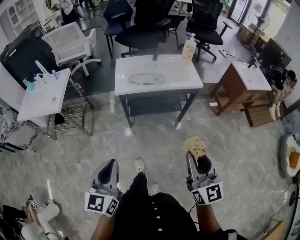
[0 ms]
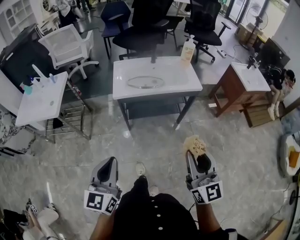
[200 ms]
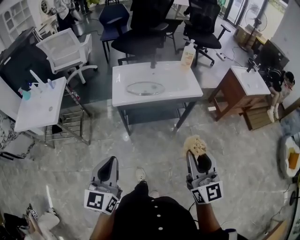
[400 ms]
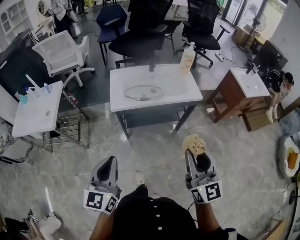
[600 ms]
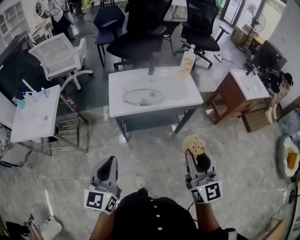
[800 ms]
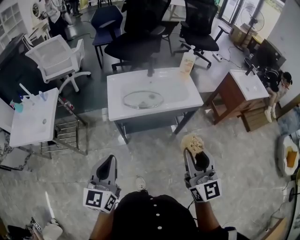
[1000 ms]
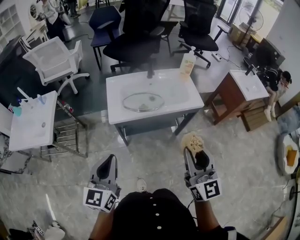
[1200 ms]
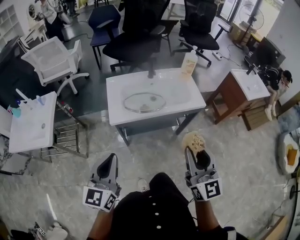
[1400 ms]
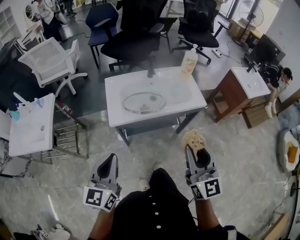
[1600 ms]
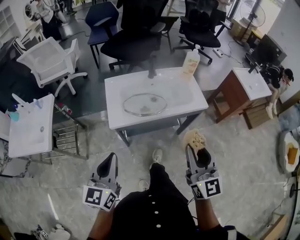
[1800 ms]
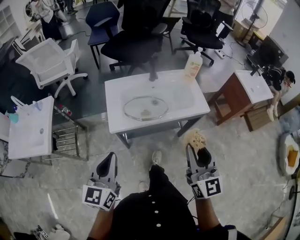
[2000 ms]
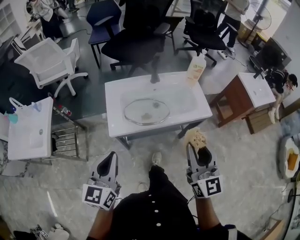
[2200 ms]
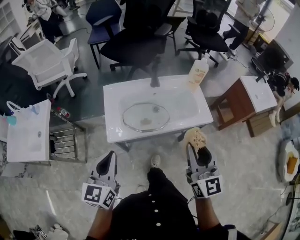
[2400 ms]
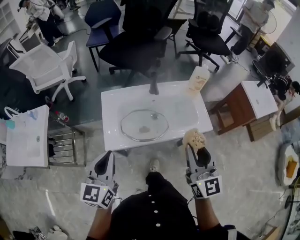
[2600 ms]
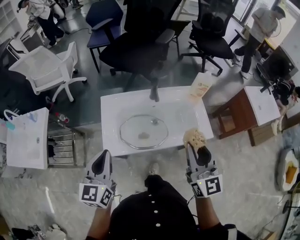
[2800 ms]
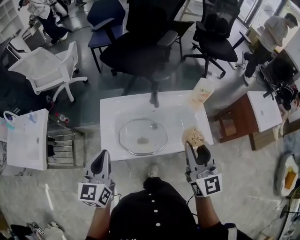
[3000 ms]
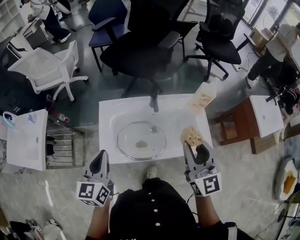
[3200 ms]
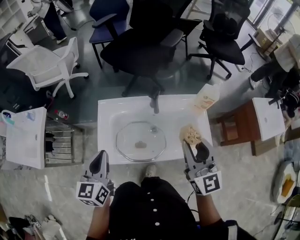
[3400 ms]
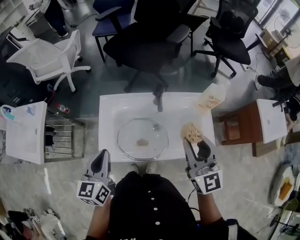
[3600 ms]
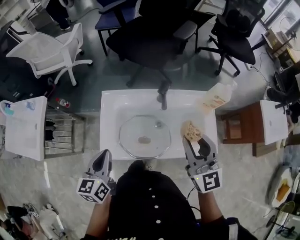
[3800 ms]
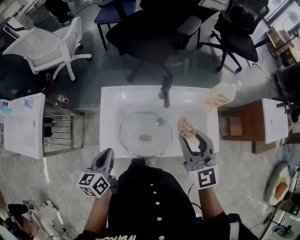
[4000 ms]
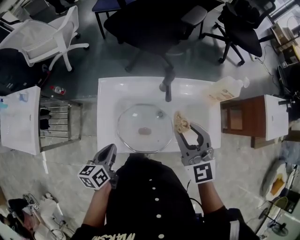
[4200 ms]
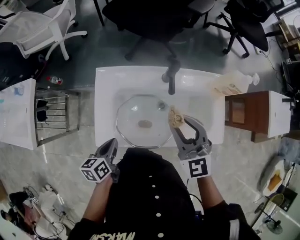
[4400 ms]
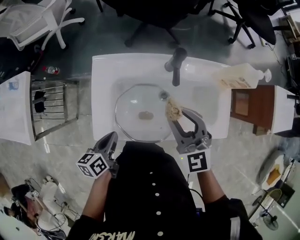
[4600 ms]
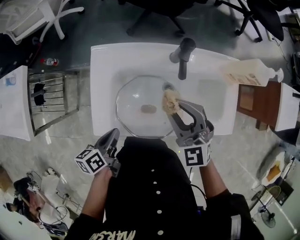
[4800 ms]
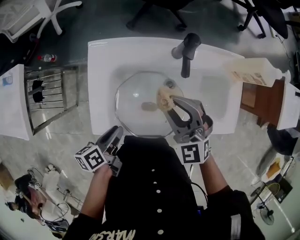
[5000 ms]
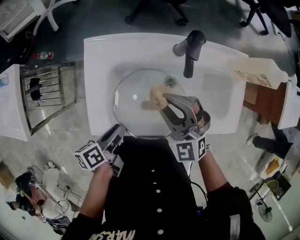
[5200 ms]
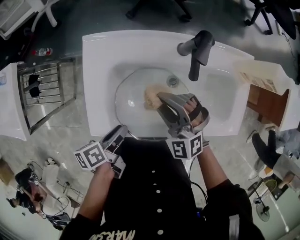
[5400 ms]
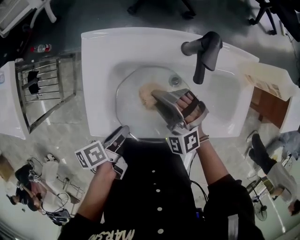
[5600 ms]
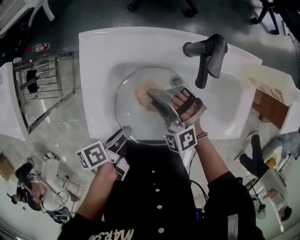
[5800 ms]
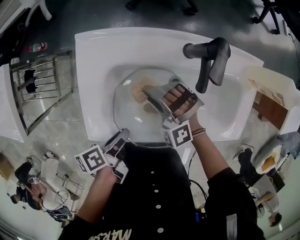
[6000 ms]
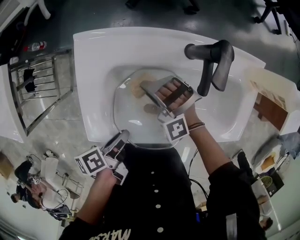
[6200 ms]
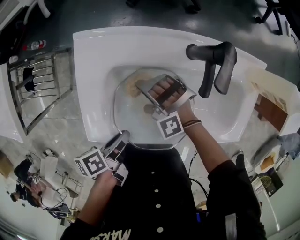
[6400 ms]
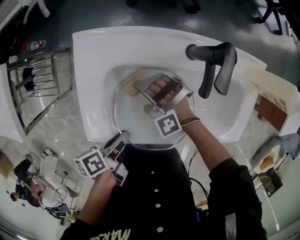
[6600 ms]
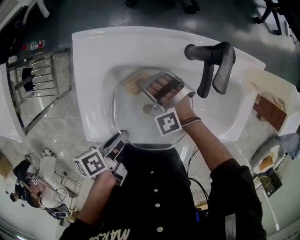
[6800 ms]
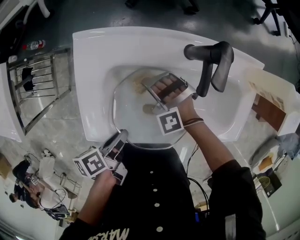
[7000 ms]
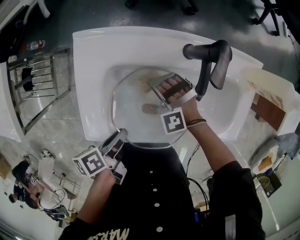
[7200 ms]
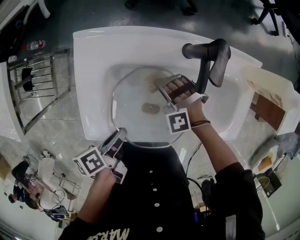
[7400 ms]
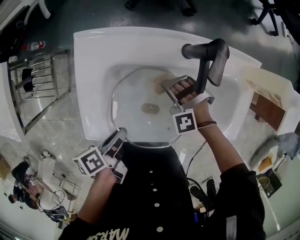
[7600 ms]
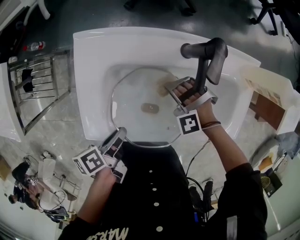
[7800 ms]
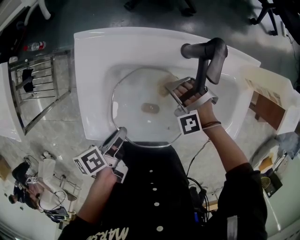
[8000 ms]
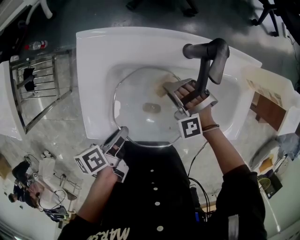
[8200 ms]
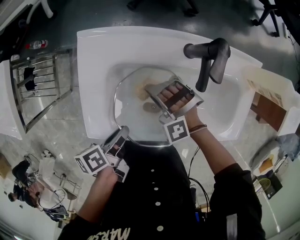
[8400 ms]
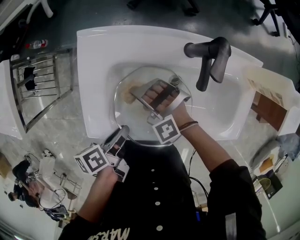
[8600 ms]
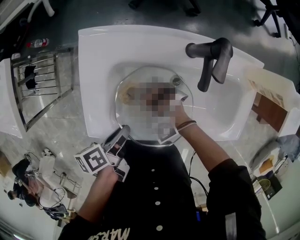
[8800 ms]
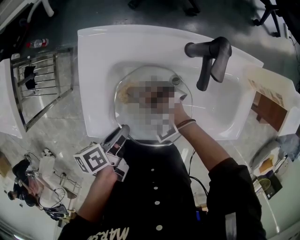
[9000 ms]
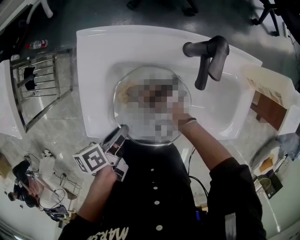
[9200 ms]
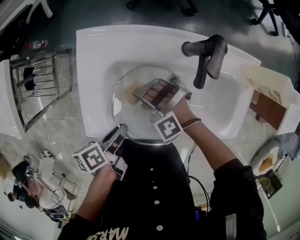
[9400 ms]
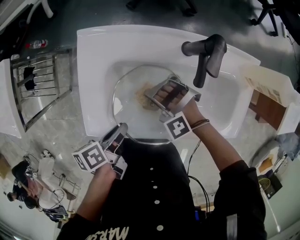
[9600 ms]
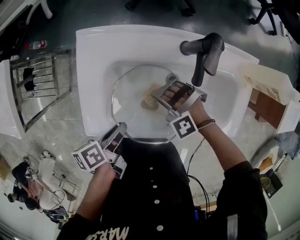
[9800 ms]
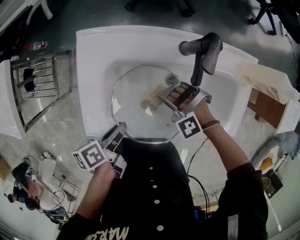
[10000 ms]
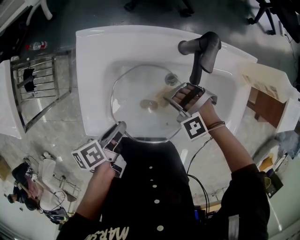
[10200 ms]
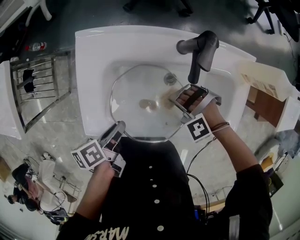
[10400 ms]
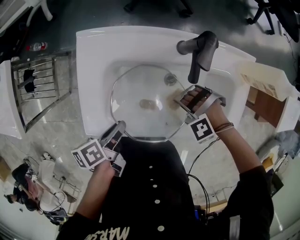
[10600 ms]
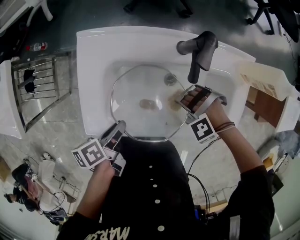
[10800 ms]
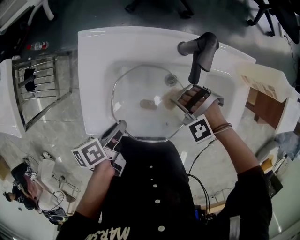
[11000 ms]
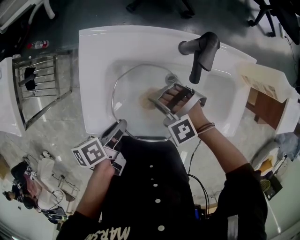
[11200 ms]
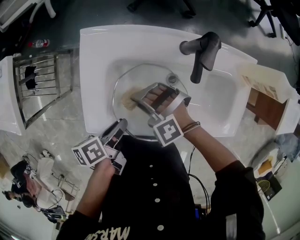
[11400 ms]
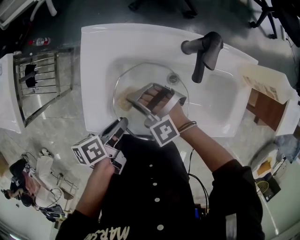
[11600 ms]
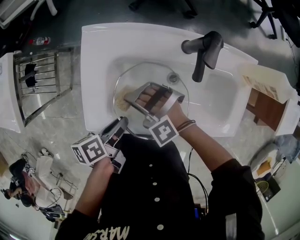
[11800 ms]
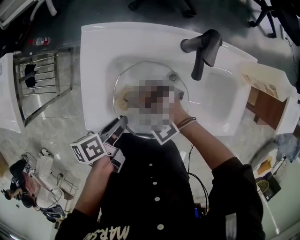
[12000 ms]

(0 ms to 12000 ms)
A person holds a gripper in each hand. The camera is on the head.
0 ms - 1600 ms: The grippers both shift forward by about 25 cm.
1600 ms - 3000 ms: Both grippers travel together forward, some 30 cm.
3000 ms - 4400 ms: The right gripper travels forward, downward and to the left by some 20 cm, and turns by some 30 degrees. The left gripper moves downward, roughly 20 cm, and changes its angle by some 40 degrees.
4400 ms - 6000 ms: The left gripper heads downward, covering some 10 cm, turns by about 40 degrees, and opens up, while the right gripper travels downward and to the left by some 25 cm, and rolls counterclockwise, seen from behind, by approximately 50 degrees.
6000 ms - 7600 ms: The right gripper heads downward and to the right, covering some 10 cm, and changes its angle by roughly 30 degrees.
7600 ms - 9000 ms: The right gripper heads to the left, covering about 15 cm, and changes its angle by about 20 degrees.
9000 ms - 10400 ms: The right gripper shifts roughly 15 cm to the right and backward, and rotates roughly 30 degrees.
10400 ms - 12000 ms: The right gripper shifts by some 15 cm, and turns by some 20 degrees.

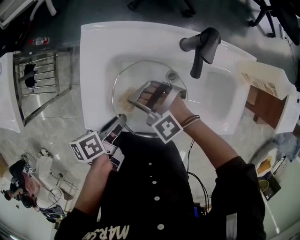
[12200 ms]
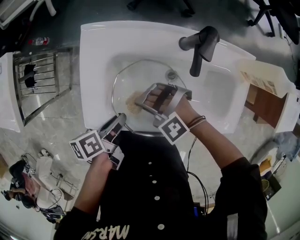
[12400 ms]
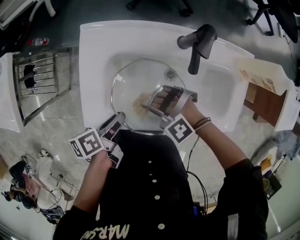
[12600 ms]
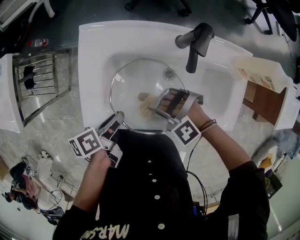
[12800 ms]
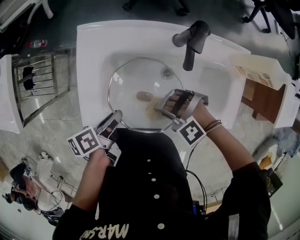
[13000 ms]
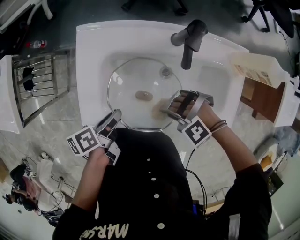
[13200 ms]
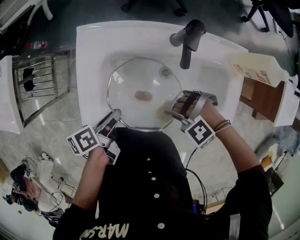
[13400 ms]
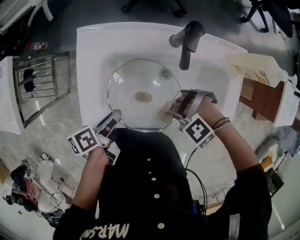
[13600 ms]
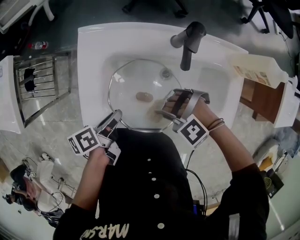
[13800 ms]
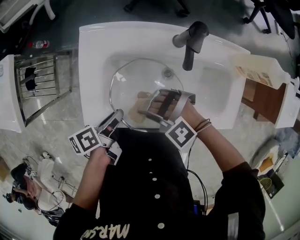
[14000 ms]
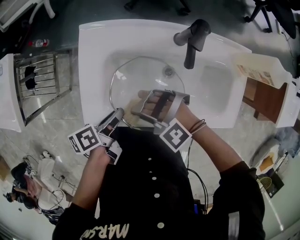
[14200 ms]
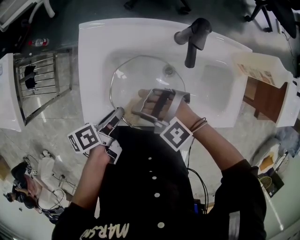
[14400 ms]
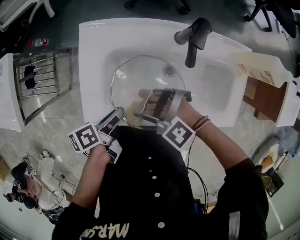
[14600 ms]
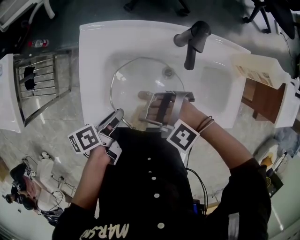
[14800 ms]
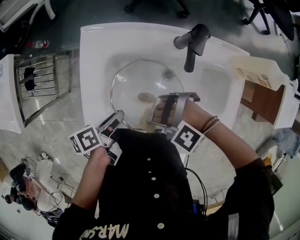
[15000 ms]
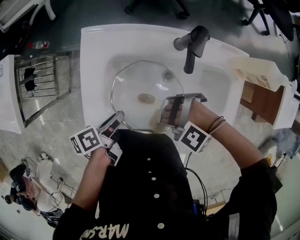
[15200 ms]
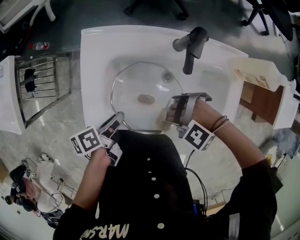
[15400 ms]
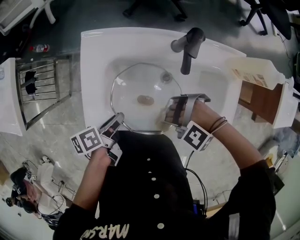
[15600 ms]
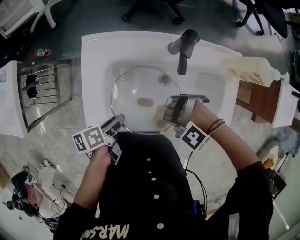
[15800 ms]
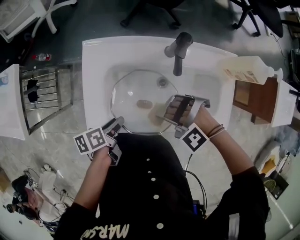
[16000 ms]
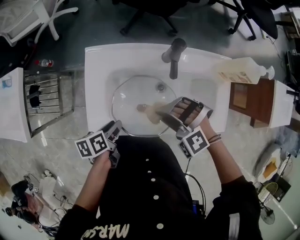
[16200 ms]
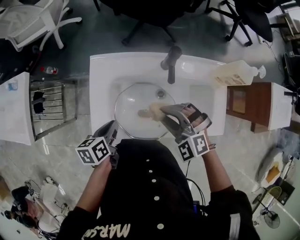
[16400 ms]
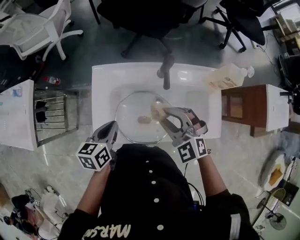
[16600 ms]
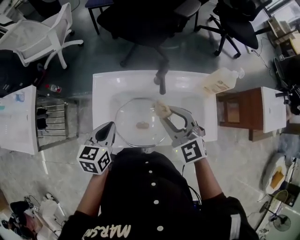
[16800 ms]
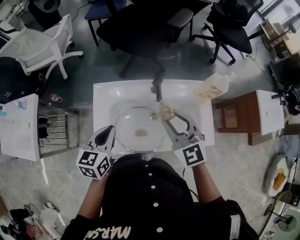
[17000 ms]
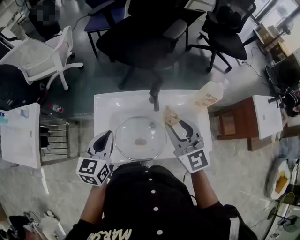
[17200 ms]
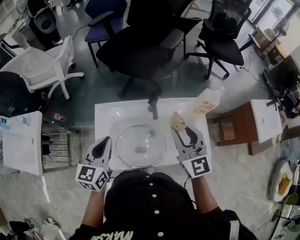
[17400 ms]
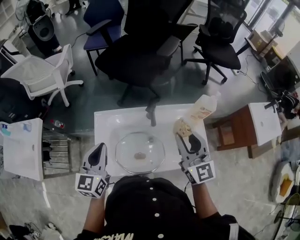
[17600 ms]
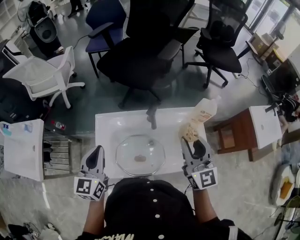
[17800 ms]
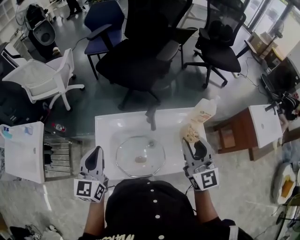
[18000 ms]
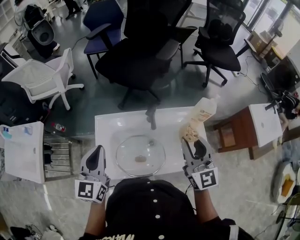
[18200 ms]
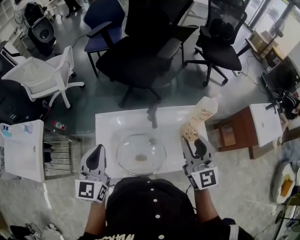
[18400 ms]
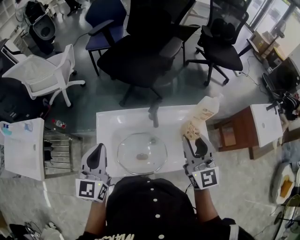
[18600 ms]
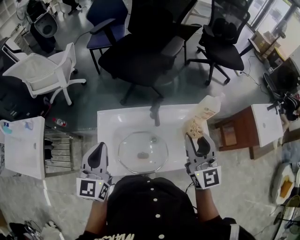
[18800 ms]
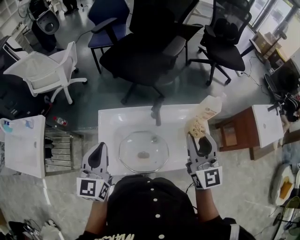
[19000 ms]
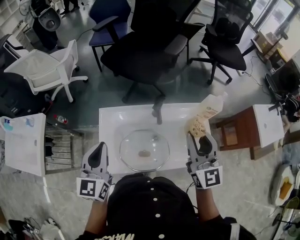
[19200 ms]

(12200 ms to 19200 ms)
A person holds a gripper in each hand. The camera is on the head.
12200 ms - 13600 ms: The right gripper ends up roughly 20 cm from where it was, and changes its angle by about 30 degrees.
15000 ms - 16400 ms: The left gripper ends up roughly 5 cm from where it was, and swivels roughly 30 degrees. Meanwhile the right gripper changes place by approximately 15 cm, and rotates roughly 60 degrees.
16400 ms - 17800 ms: The right gripper moves upward and to the right, roughly 25 cm, and angles its fingers upward, by roughly 50 degrees. The left gripper shifts about 25 cm upward, and points its fingers approximately 30 degrees further upward.
17800 ms - 19200 ms: The grippers move only a little.

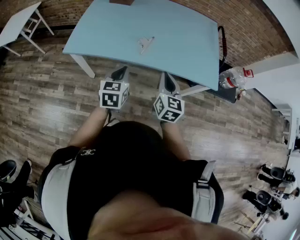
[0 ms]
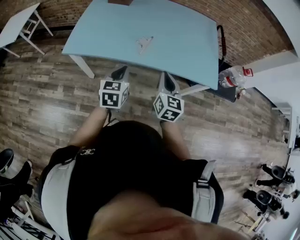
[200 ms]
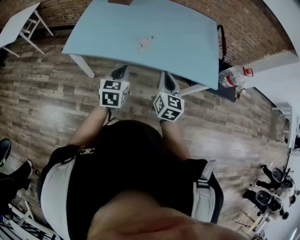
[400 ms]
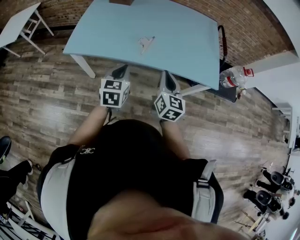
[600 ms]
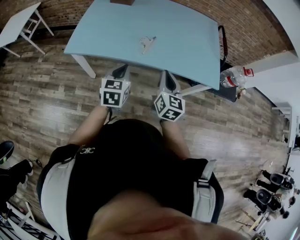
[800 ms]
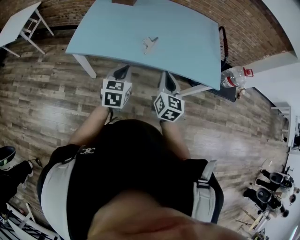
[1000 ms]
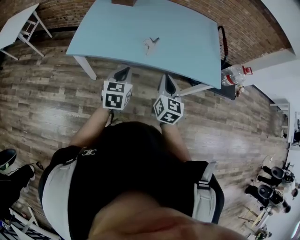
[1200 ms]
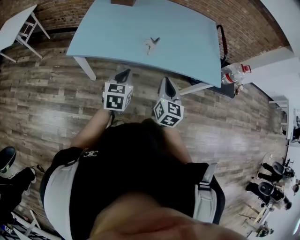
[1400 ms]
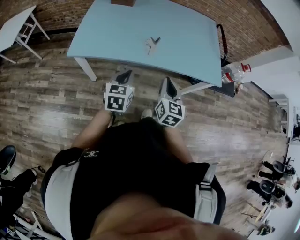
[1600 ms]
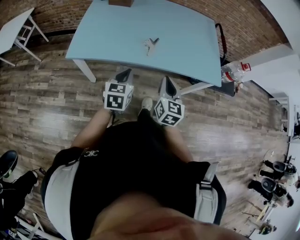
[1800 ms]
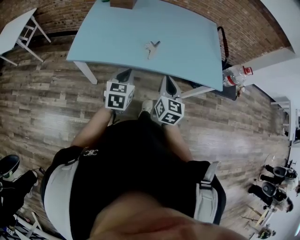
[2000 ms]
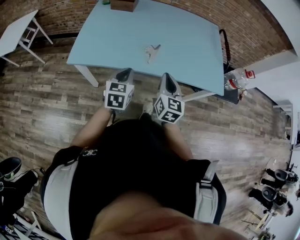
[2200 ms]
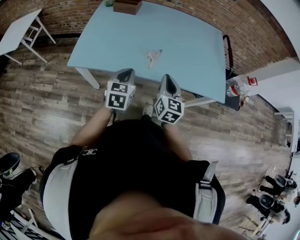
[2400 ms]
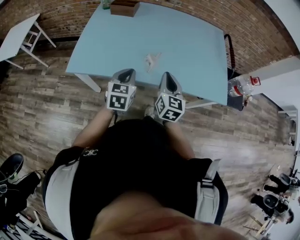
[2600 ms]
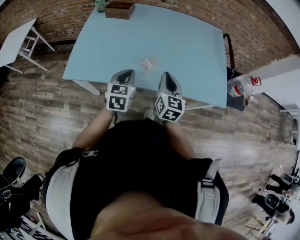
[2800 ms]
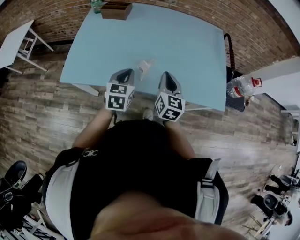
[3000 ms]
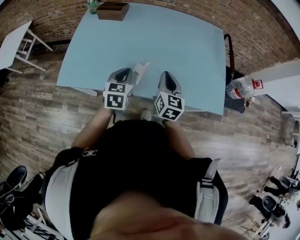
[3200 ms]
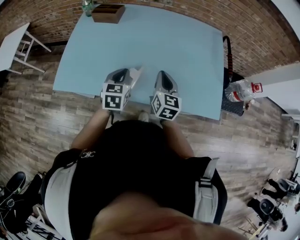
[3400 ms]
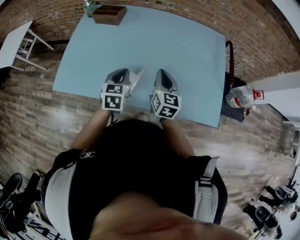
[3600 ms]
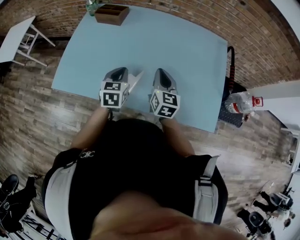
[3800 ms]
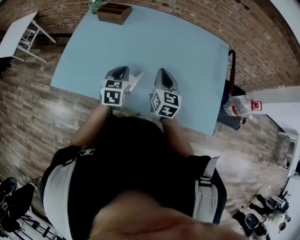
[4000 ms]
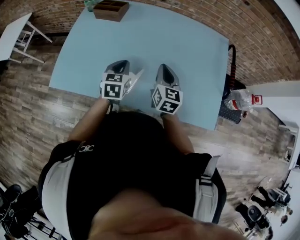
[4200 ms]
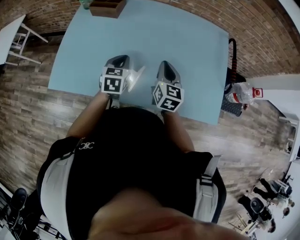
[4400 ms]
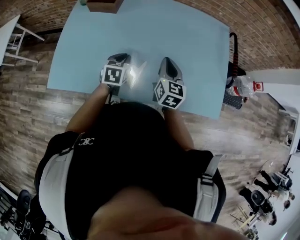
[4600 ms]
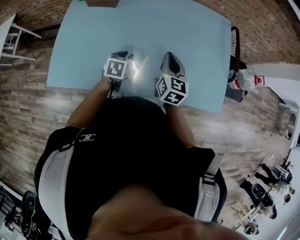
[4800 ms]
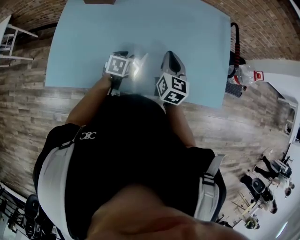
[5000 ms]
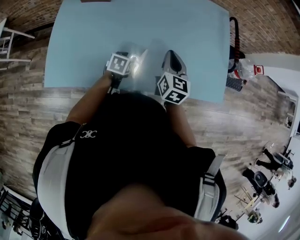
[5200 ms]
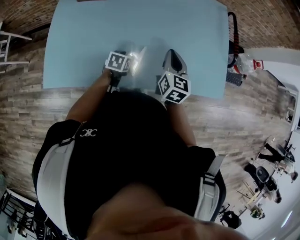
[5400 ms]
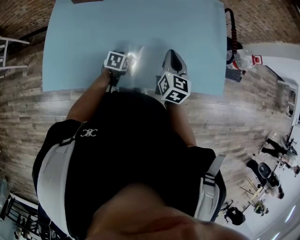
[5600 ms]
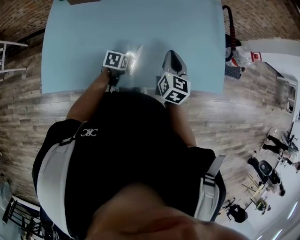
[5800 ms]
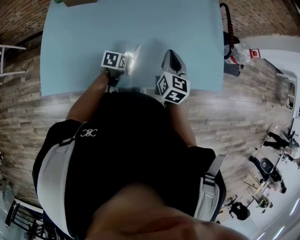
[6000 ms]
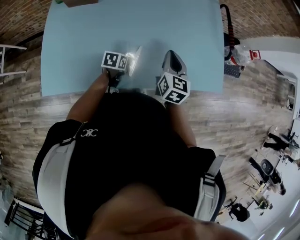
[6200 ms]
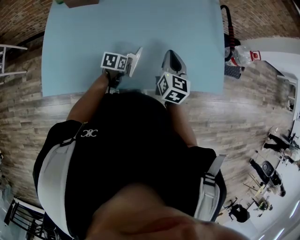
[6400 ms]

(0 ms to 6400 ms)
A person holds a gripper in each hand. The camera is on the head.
0 ms - 1600 ms: The right gripper goes approximately 5 cm to the left; the left gripper changes place by some 5 cm.
1600 ms - 3200 ms: Both grippers move forward, some 25 cm.
3200 ms - 4800 ms: The right gripper shifts approximately 10 cm forward; the left gripper travels forward and downward by approximately 15 cm, and opens.
4800 ms - 6400 ms: The left gripper travels downward and to the right by approximately 15 cm, and turns by approximately 30 degrees. Meanwhile the right gripper shifts by some 5 cm.
